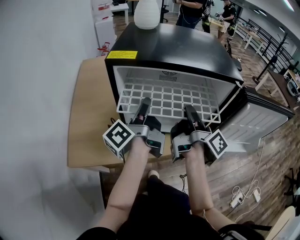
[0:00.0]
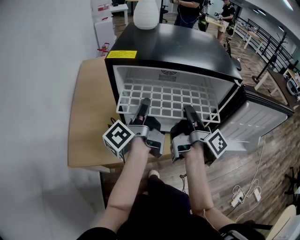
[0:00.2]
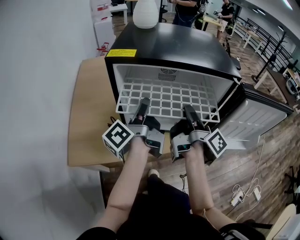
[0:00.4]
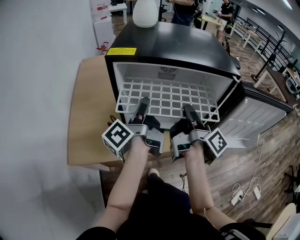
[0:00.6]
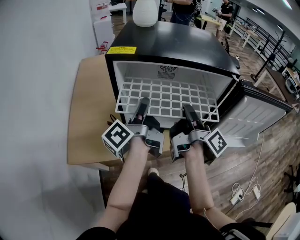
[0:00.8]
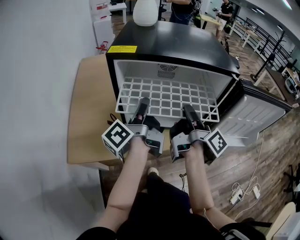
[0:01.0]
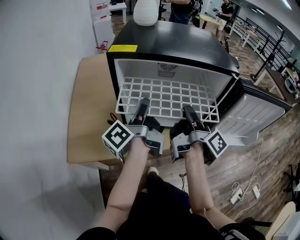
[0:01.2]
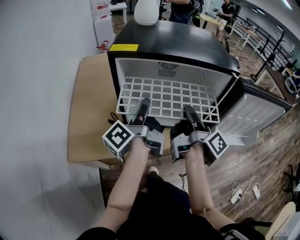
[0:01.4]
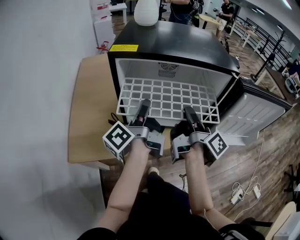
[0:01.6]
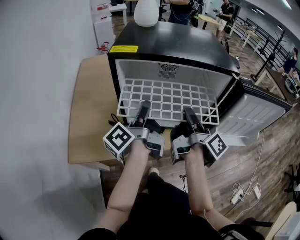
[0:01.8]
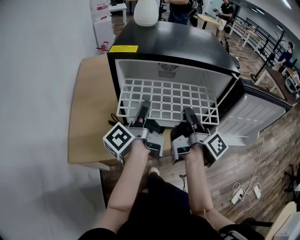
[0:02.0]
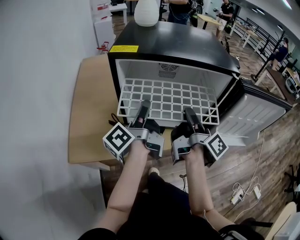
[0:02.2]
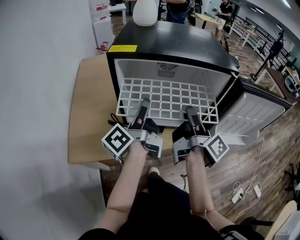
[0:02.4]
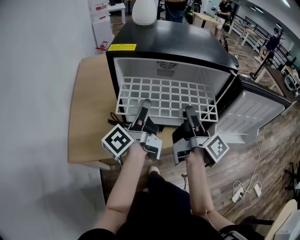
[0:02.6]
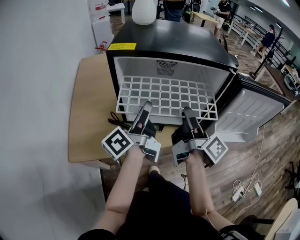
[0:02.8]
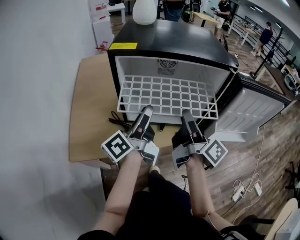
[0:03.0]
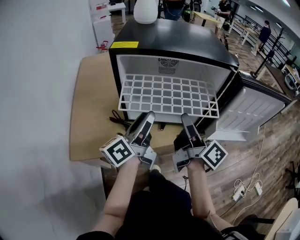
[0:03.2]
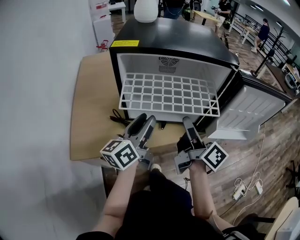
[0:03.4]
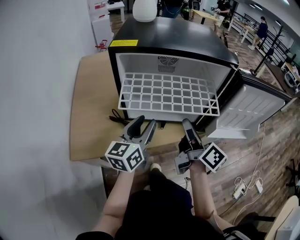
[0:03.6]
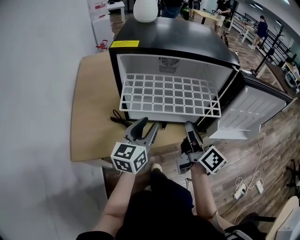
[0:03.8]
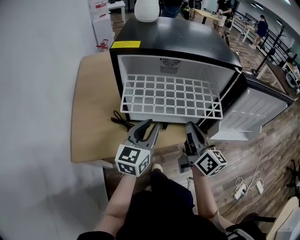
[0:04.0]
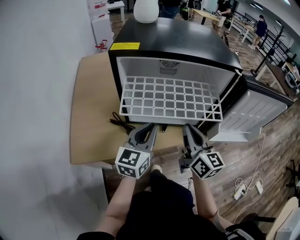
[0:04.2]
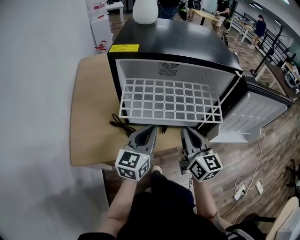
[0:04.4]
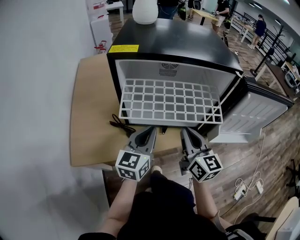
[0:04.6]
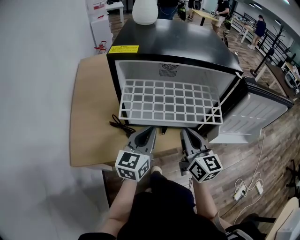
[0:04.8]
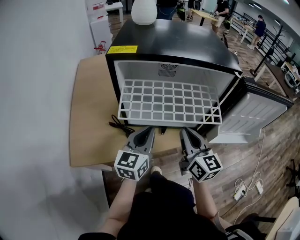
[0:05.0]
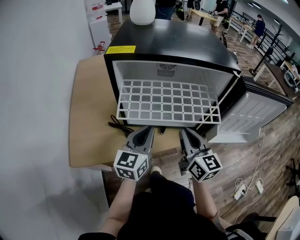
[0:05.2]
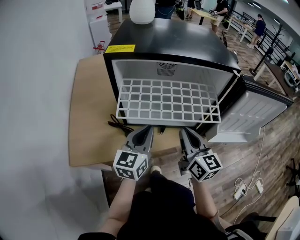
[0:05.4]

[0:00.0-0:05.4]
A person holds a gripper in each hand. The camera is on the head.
0:00.0 to 0:01.4: The two grippers keep their place.
0:01.4 to 0:02.8: The right gripper opens; the left gripper opens its fingers.
0:02.8 to 0:04.0: The left gripper goes approximately 5 cm downward, and rolls clockwise, seen from behind, by some 60 degrees, while the right gripper ends up about 5 cm from where it was, rolls counterclockwise, seen from behind, by approximately 40 degrees, and closes its fingers.
0:04.0 to 0:05.4: The right gripper rotates roughly 20 degrees. Meanwhile the left gripper closes its fingers.

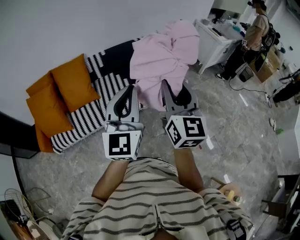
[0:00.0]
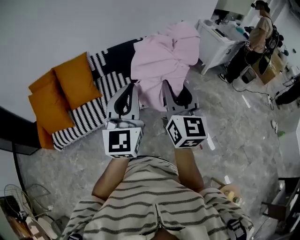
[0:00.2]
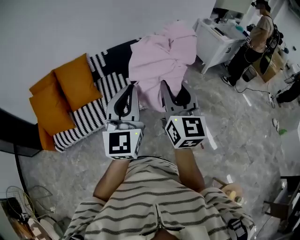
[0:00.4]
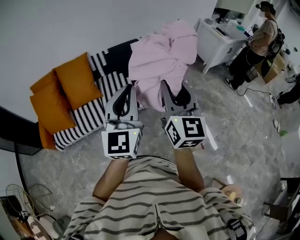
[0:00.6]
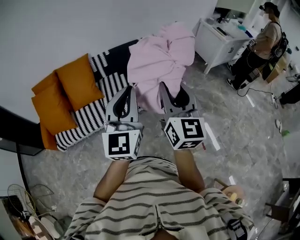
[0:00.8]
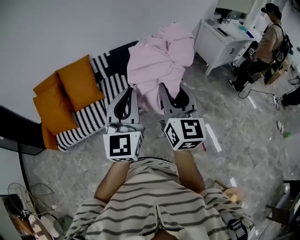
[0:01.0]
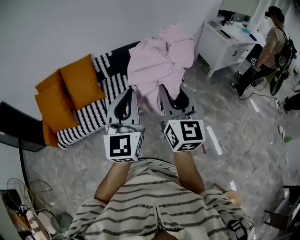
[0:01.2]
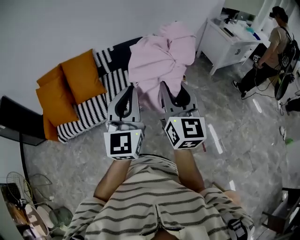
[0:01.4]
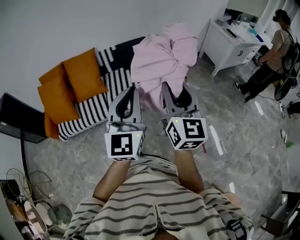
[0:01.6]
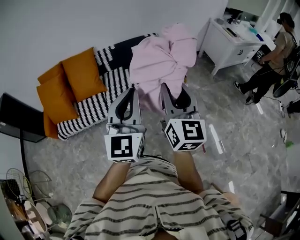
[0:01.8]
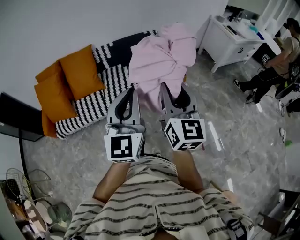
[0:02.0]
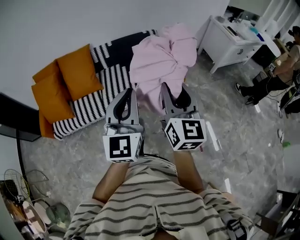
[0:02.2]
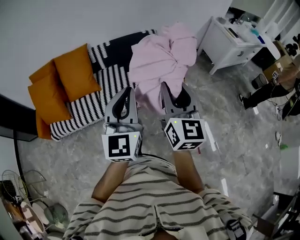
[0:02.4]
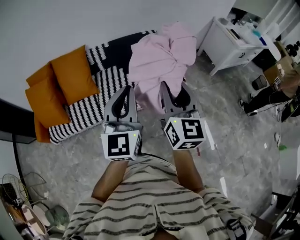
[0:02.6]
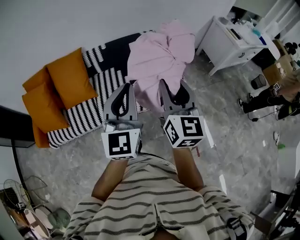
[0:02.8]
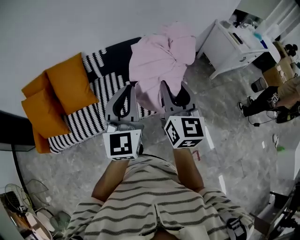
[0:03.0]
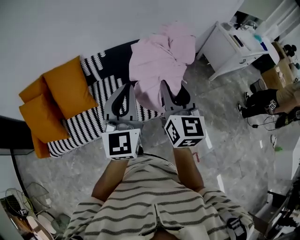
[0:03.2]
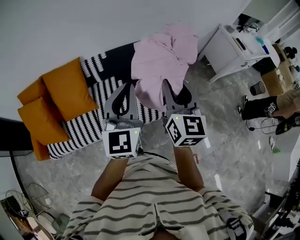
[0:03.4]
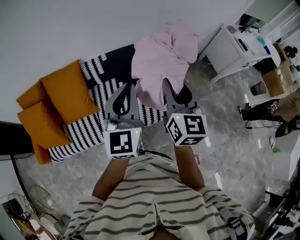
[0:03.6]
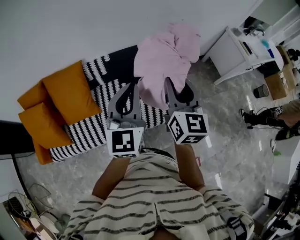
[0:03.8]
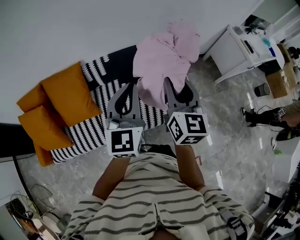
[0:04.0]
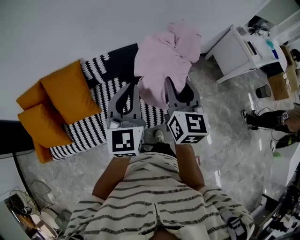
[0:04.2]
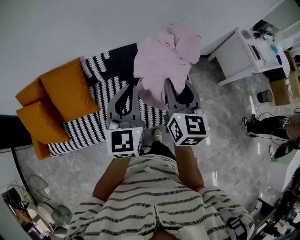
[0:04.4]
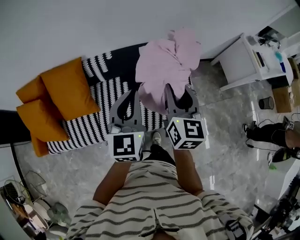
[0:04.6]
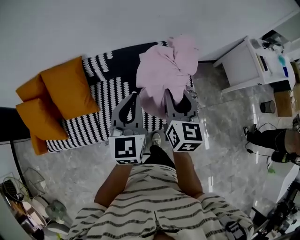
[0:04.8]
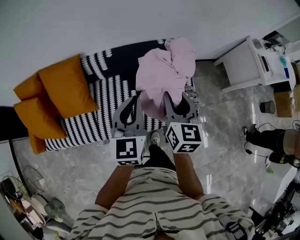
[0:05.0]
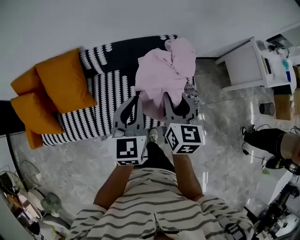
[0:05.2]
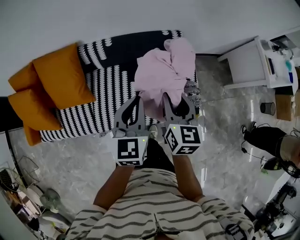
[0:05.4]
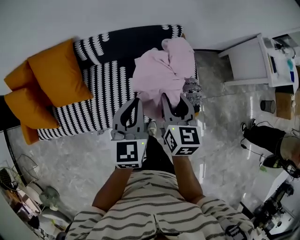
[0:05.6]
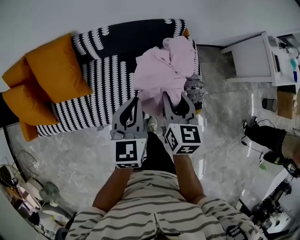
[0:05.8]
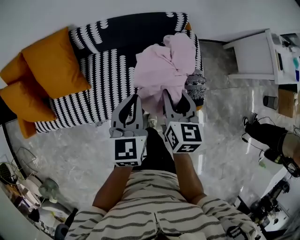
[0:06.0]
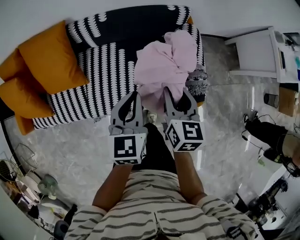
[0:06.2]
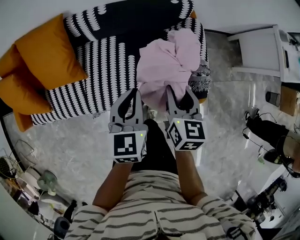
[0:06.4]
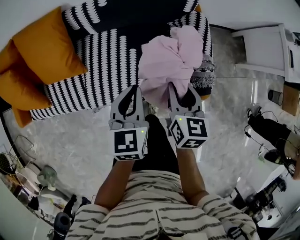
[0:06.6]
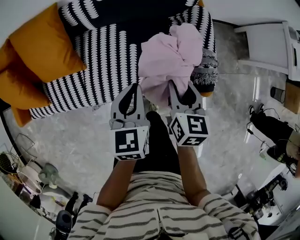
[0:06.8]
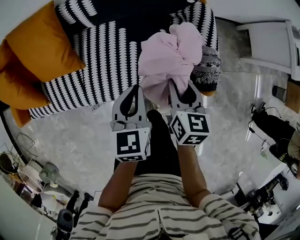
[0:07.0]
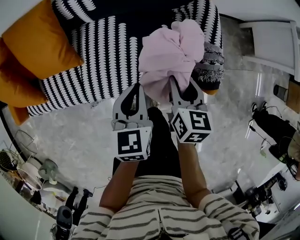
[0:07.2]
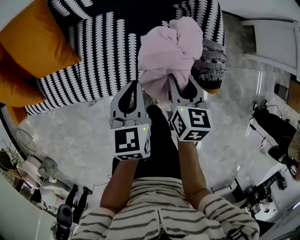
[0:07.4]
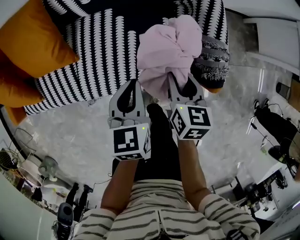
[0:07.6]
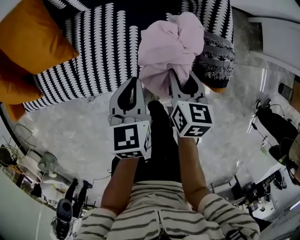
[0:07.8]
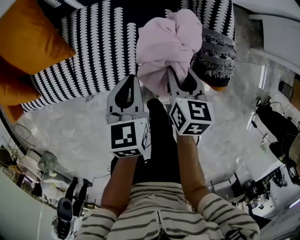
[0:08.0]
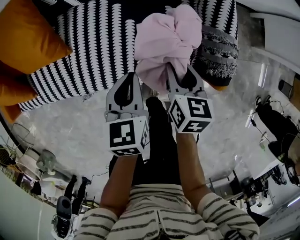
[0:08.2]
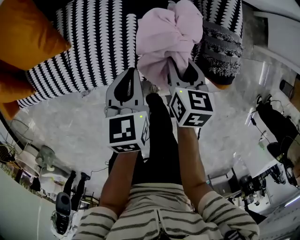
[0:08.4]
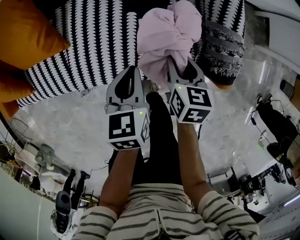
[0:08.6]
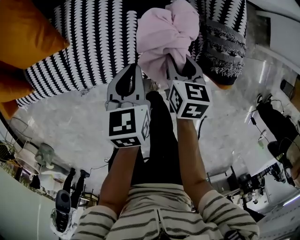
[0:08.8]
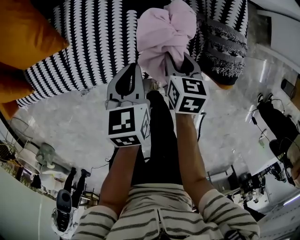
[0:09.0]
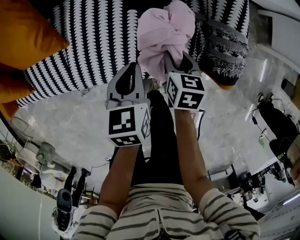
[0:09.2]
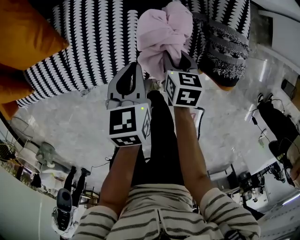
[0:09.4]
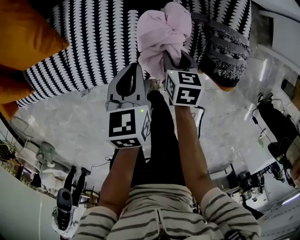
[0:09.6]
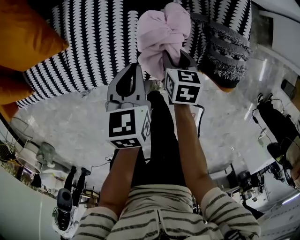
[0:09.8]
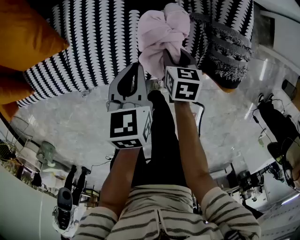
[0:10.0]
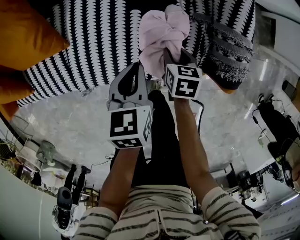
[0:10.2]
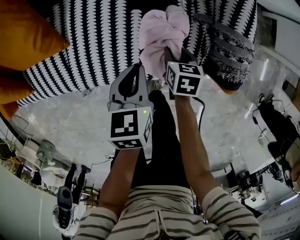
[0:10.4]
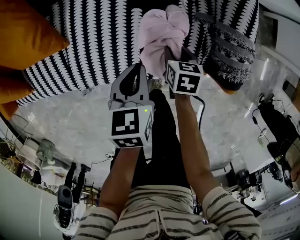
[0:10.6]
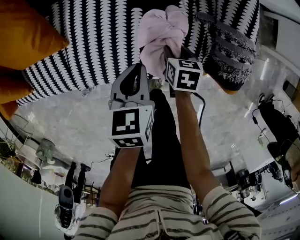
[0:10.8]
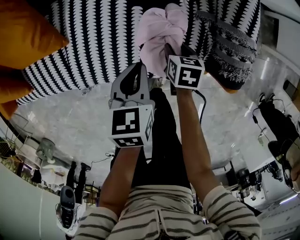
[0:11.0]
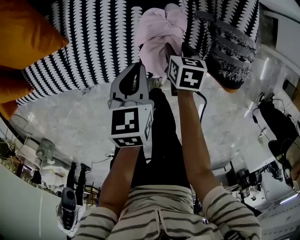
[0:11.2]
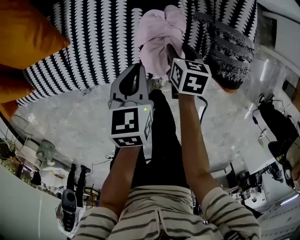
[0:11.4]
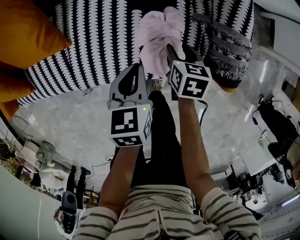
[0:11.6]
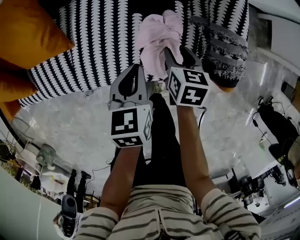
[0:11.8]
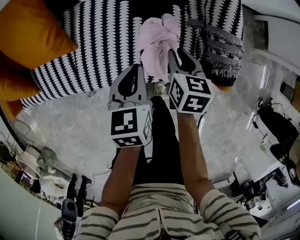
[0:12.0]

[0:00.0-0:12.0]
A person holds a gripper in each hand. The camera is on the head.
0:00.0 to 0:01.6: Both grippers travel together to the right, approximately 5 cm.
0:01.6 to 0:03.0: Both grippers travel together forward, some 25 cm.
0:03.0 to 0:04.4: Both grippers travel together forward, roughly 25 cm.
0:04.4 to 0:06.0: The grippers both shift downward by roughly 20 cm. The right gripper changes its angle by approximately 20 degrees, while the left gripper swivels some 20 degrees.
0:06.0 to 0:07.6: The grippers both shift downward by roughly 20 cm.
0:07.6 to 0:09.0: The grippers both shift downward by about 15 cm.
0:09.0 to 0:10.4: The right gripper moves downward, roughly 10 cm.
0:10.4 to 0:12.0: The left gripper heads upward, covering approximately 5 cm. The right gripper goes roughly 15 cm upward.

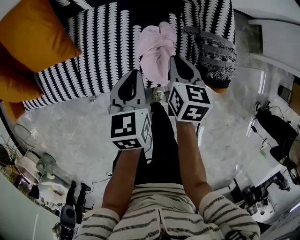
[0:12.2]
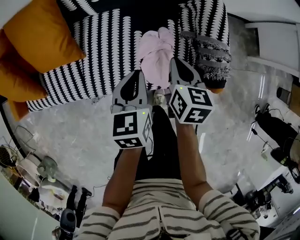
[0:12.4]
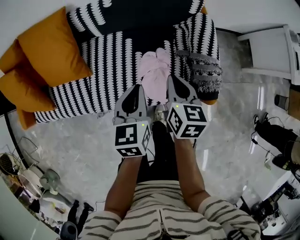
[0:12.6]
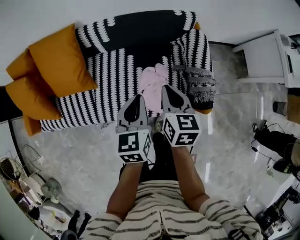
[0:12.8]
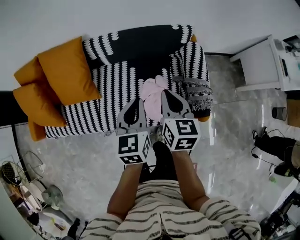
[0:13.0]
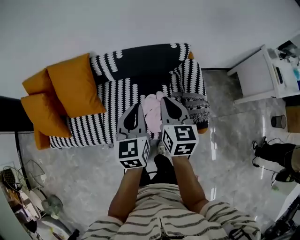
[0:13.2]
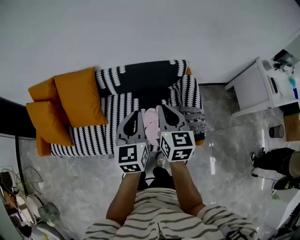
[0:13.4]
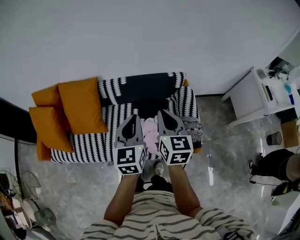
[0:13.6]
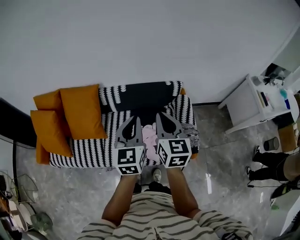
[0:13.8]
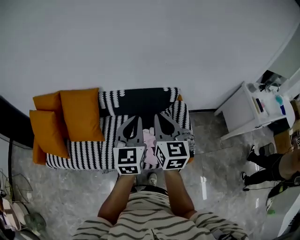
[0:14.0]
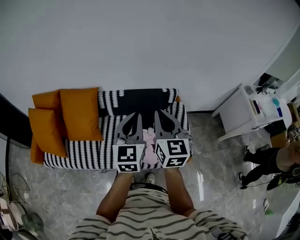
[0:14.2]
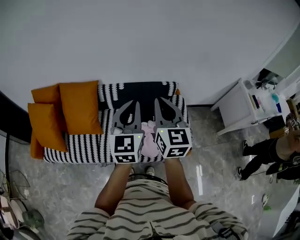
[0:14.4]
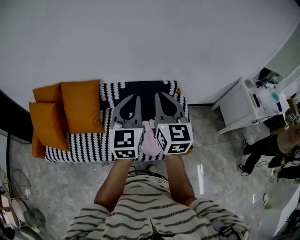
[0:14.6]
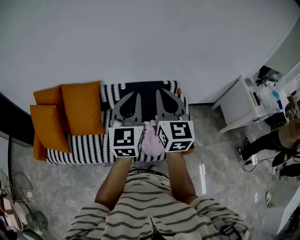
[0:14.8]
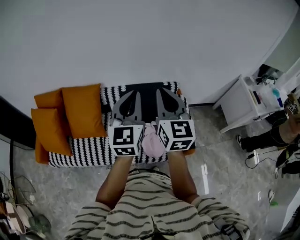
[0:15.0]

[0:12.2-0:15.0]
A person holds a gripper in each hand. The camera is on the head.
0:12.2 to 0:13.6: The two grippers go about 35 cm upward. The left gripper turns by roughly 30 degrees. The right gripper swivels roughly 30 degrees.
0:13.6 to 0:15.0: The grippers both shift upward by approximately 15 cm. The right gripper swivels about 20 degrees.

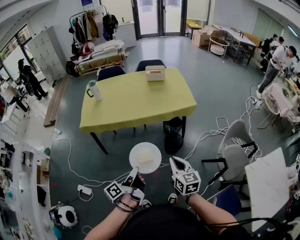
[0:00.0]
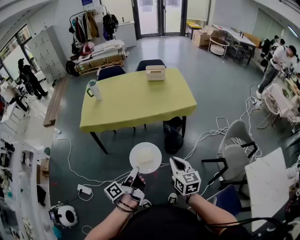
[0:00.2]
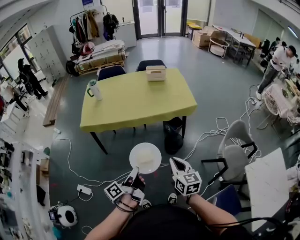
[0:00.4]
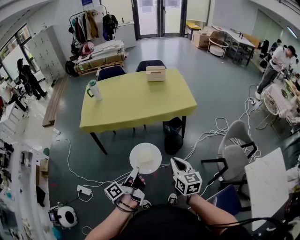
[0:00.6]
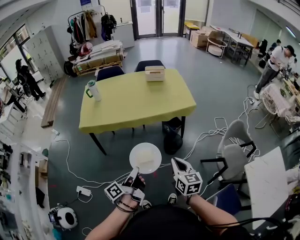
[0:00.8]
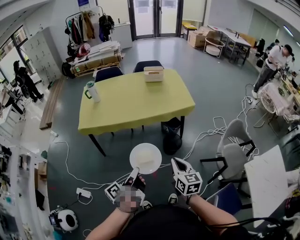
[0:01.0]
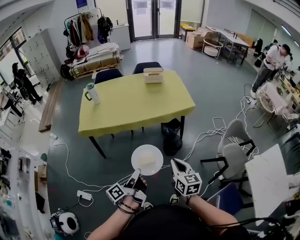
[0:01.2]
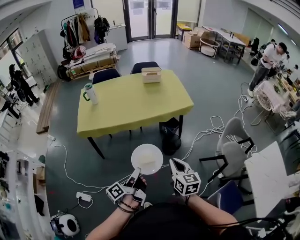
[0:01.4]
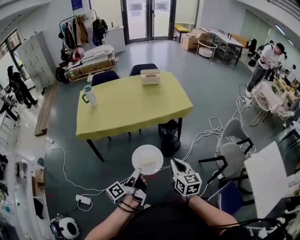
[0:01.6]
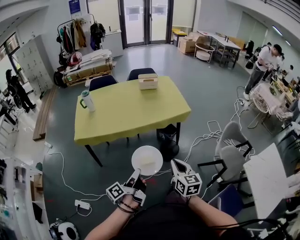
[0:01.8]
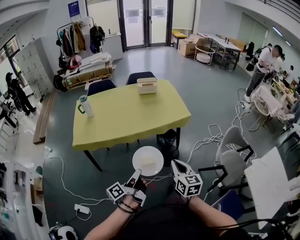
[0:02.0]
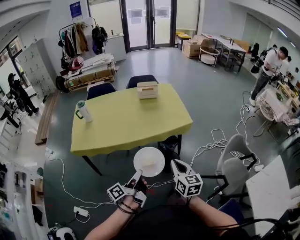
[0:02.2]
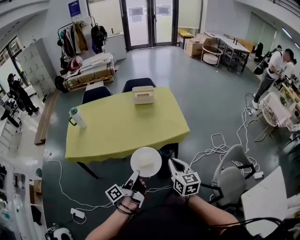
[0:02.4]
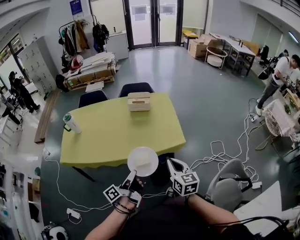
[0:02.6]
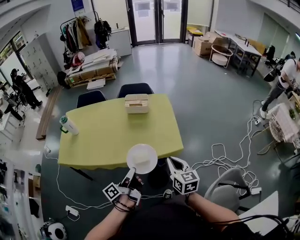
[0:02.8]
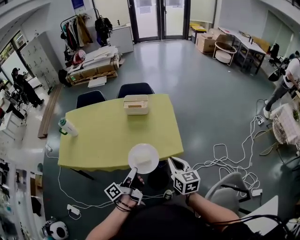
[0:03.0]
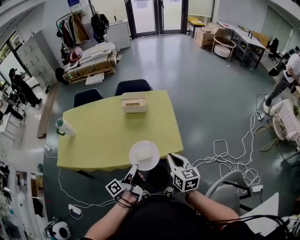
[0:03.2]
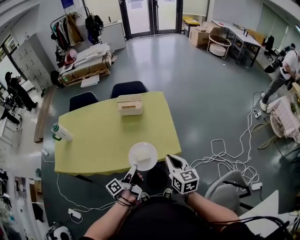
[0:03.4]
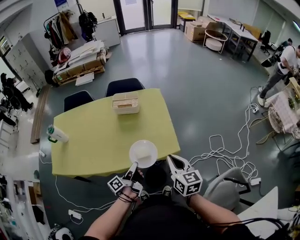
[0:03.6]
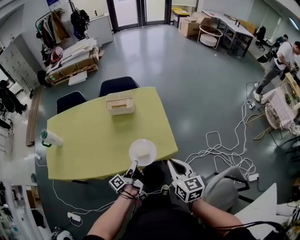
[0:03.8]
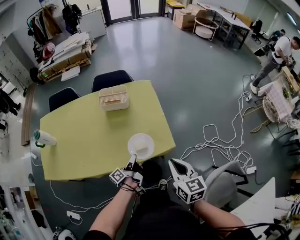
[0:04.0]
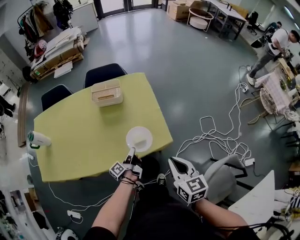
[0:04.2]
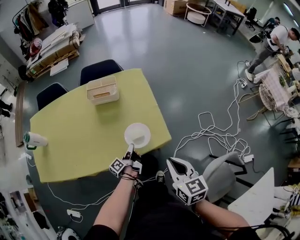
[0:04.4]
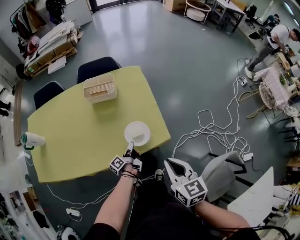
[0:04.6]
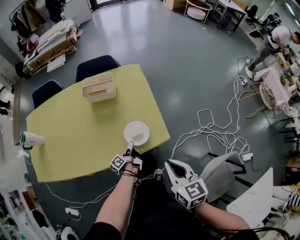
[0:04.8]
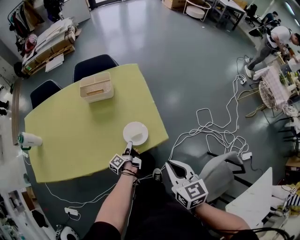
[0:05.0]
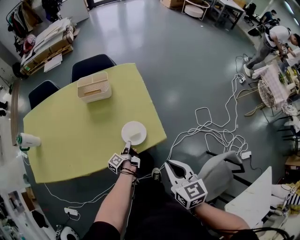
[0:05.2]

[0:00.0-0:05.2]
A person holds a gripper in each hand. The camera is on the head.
0:01.8 to 0:03.4: The right gripper shifts by roughly 50 cm.
0:03.4 to 0:05.2: The right gripper travels downward by roughly 5 cm.
